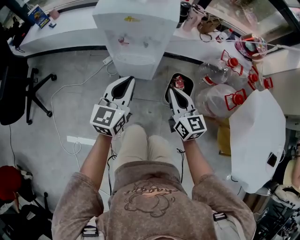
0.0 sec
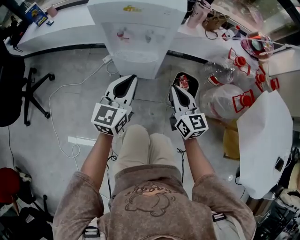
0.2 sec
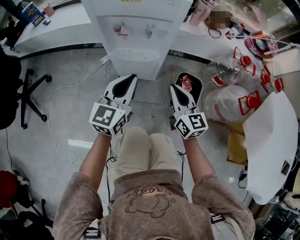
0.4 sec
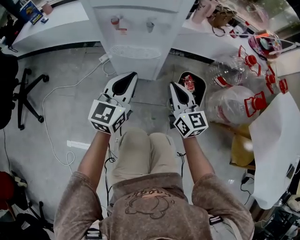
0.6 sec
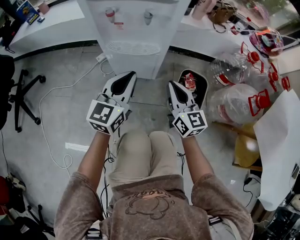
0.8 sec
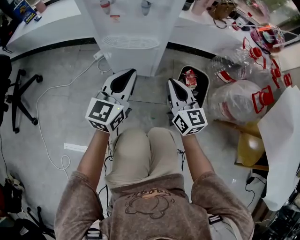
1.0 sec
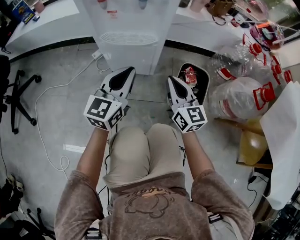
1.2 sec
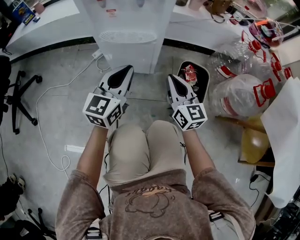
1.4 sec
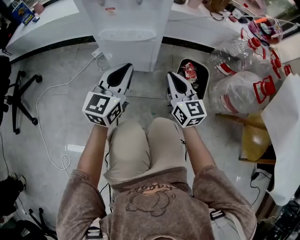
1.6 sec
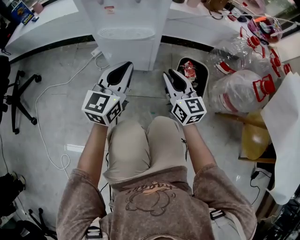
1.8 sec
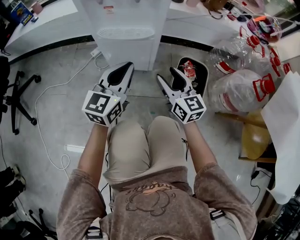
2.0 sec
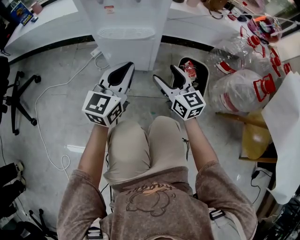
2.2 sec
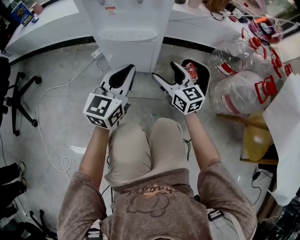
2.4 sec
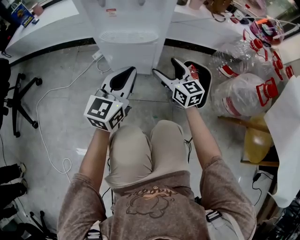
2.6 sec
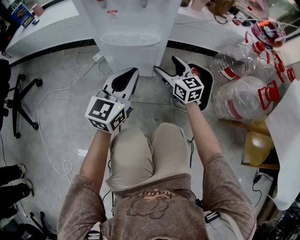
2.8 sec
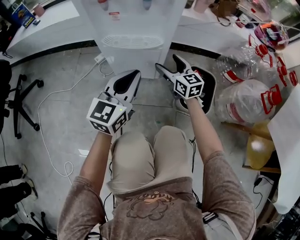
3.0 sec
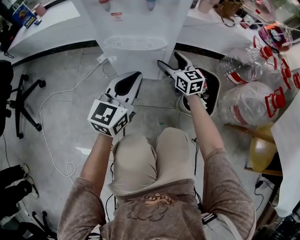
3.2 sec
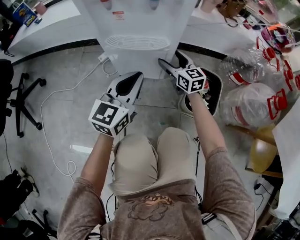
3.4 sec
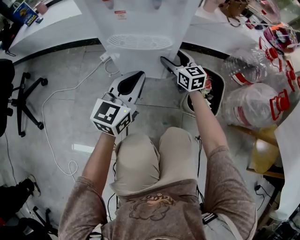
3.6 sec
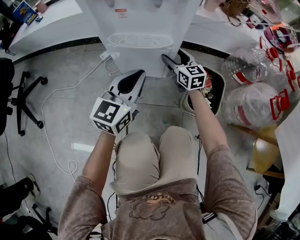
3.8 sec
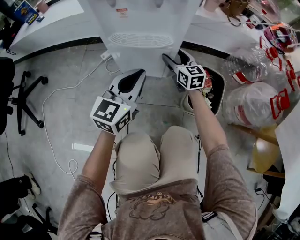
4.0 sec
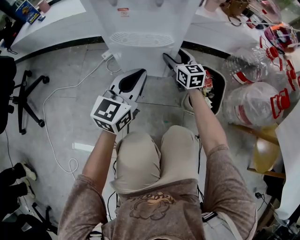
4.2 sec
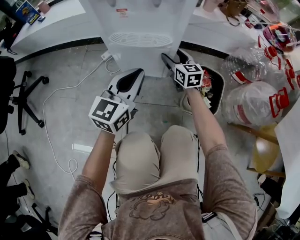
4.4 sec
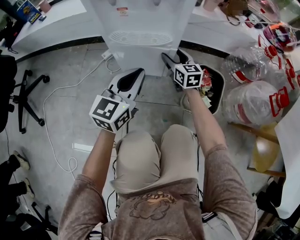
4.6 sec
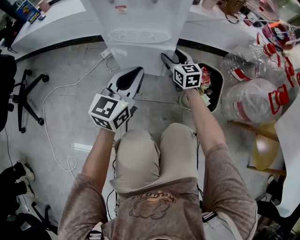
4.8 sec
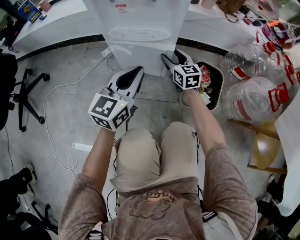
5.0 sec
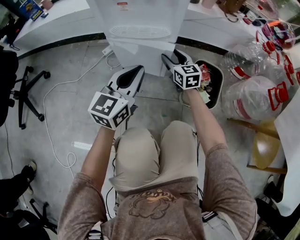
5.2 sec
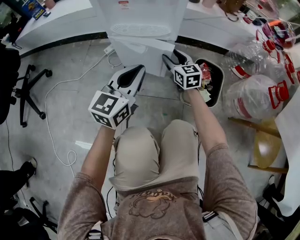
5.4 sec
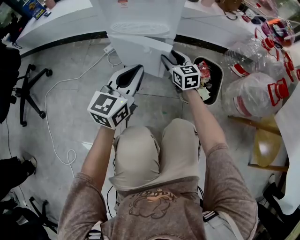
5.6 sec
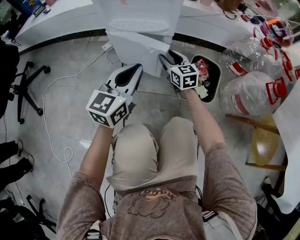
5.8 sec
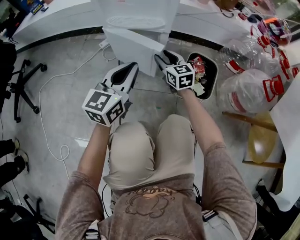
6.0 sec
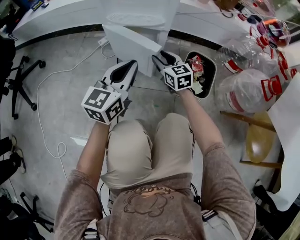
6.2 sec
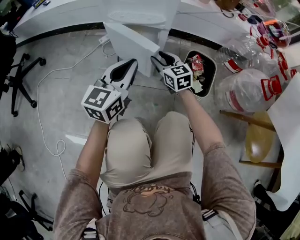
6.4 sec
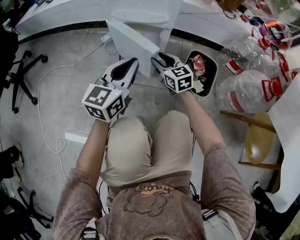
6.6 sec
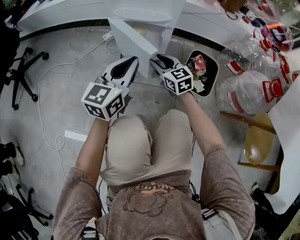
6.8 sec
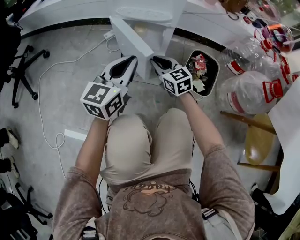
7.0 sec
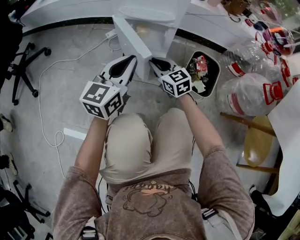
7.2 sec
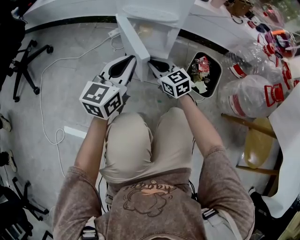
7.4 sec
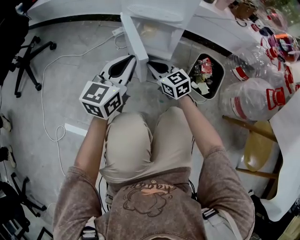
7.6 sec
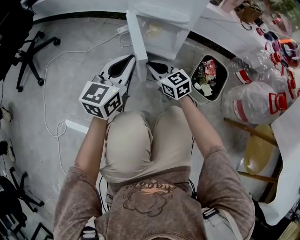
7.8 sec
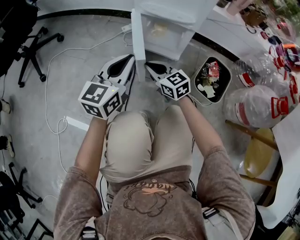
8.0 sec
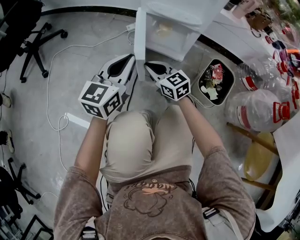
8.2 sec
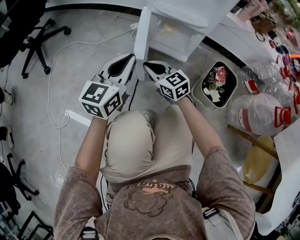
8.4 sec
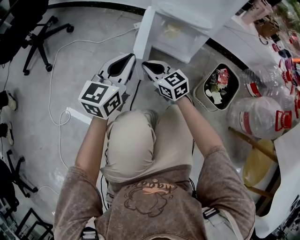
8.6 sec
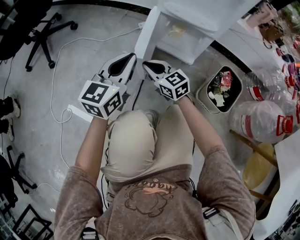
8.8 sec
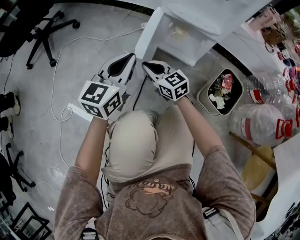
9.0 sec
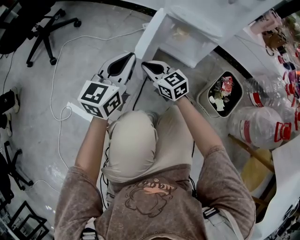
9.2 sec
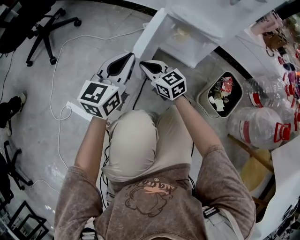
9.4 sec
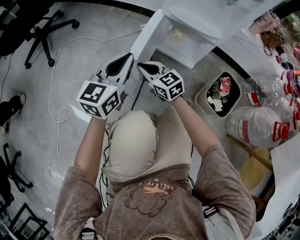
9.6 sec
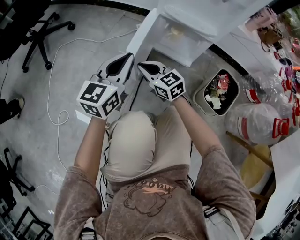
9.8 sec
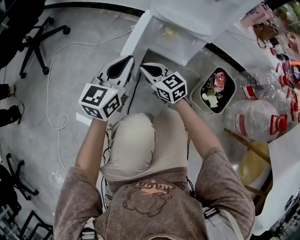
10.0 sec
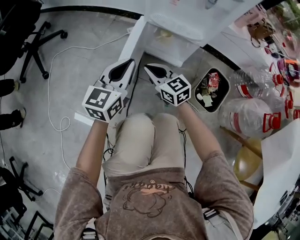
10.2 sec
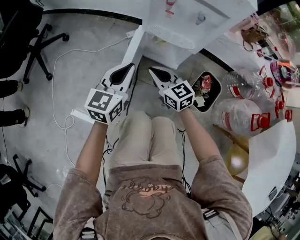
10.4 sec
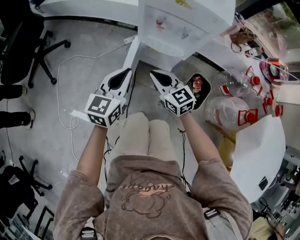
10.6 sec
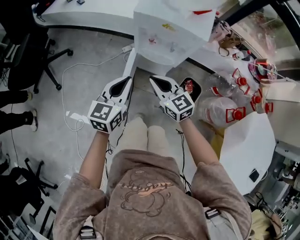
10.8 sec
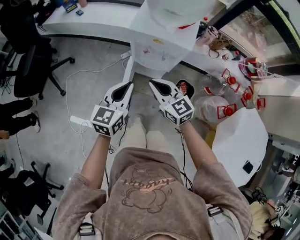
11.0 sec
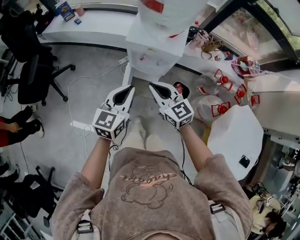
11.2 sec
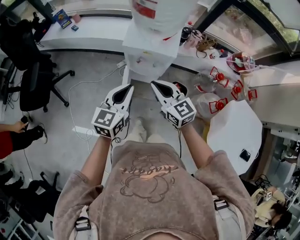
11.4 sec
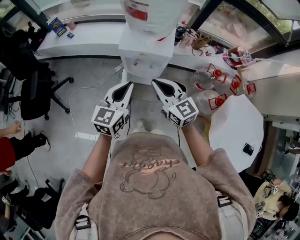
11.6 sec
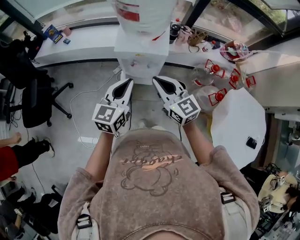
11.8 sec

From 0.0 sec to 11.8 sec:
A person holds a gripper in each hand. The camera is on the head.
From 0.0 sec to 1.4 sec: Both grippers move downward, approximately 20 cm.
From 1.4 sec to 3.0 sec: The right gripper shifts roughly 15 cm forward and downward, and opens its fingers.
From 3.0 sec to 4.4 sec: The right gripper moves some 5 cm.
From 4.4 sec to 6.0 sec: Both grippers move backward, roughly 10 cm.
From 6.0 sec to 7.4 sec: The right gripper is displaced backward and to the left by approximately 10 cm.
From 7.4 sec to 8.8 sec: Both grippers move to the left, some 15 cm.
From 8.8 sec to 10.4 sec: The left gripper is displaced upward by roughly 10 cm. Meanwhile the right gripper heads upward and to the right, covering some 15 cm.
From 10.4 sec to 11.8 sec: Both grippers travel together upward, roughly 50 cm. The right gripper changes its angle by approximately 20 degrees.

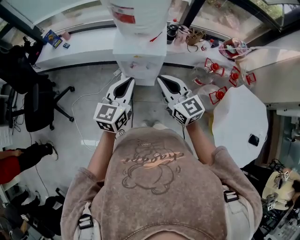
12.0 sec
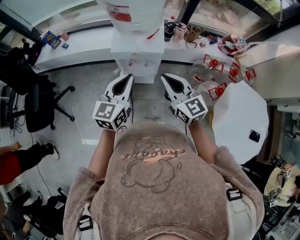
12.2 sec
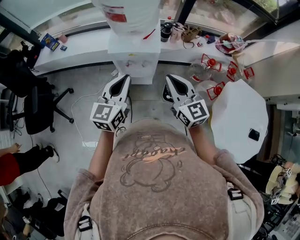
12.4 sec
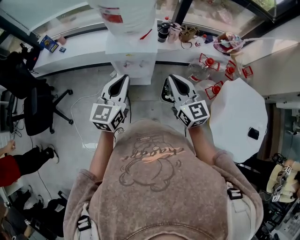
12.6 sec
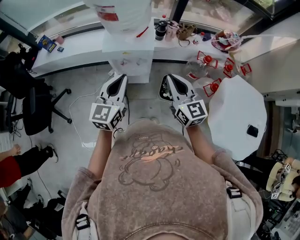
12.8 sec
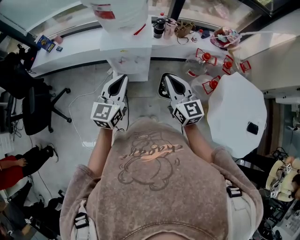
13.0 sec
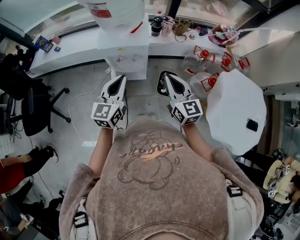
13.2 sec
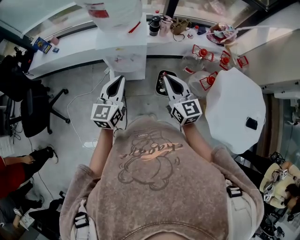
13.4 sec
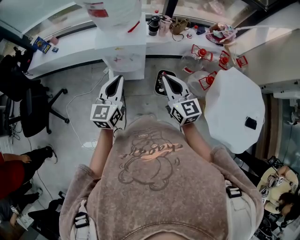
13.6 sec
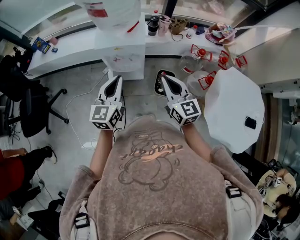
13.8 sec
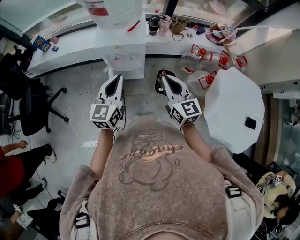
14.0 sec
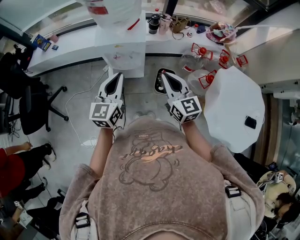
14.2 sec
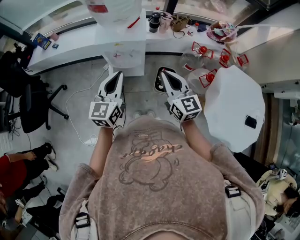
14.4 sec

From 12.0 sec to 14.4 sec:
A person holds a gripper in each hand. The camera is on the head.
From 12.0 sec to 13.2 sec: The right gripper moves to the right, about 10 cm. The left gripper shifts by some 5 cm.
From 13.2 sec to 14.4 sec: The grippers stay close to where they were, moving slightly.

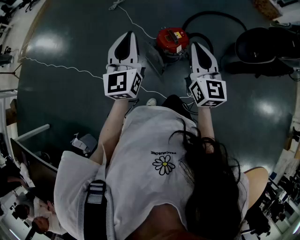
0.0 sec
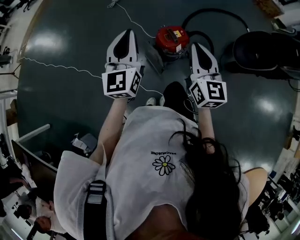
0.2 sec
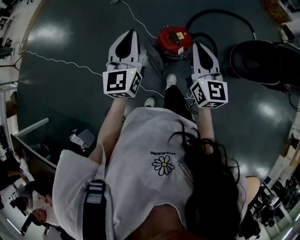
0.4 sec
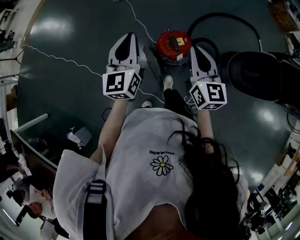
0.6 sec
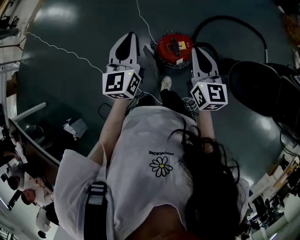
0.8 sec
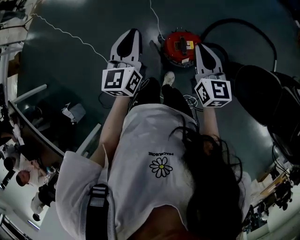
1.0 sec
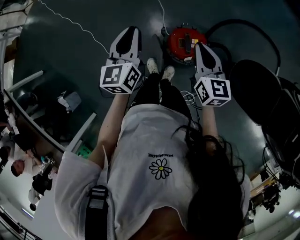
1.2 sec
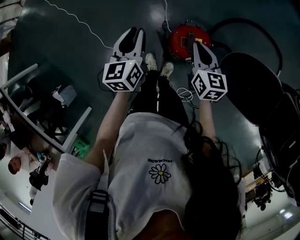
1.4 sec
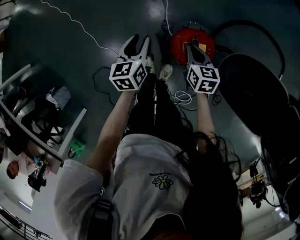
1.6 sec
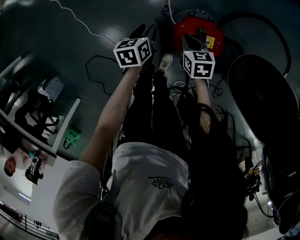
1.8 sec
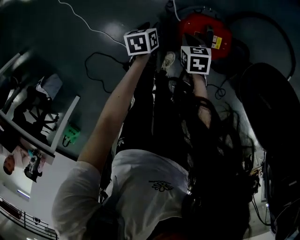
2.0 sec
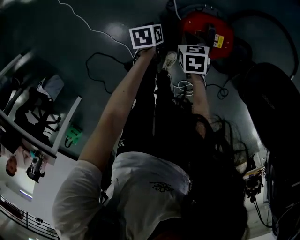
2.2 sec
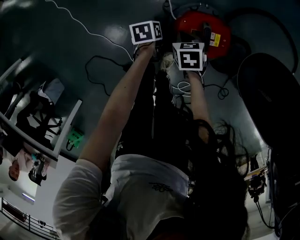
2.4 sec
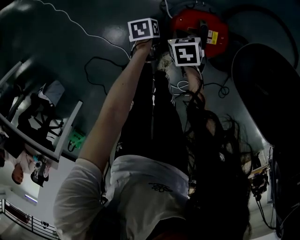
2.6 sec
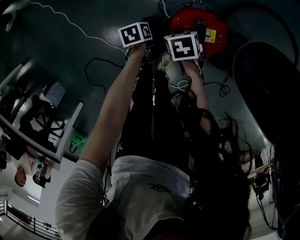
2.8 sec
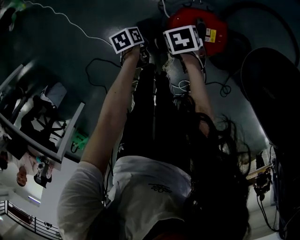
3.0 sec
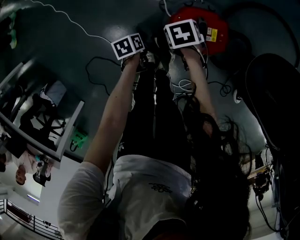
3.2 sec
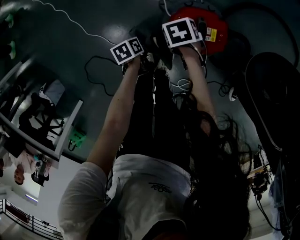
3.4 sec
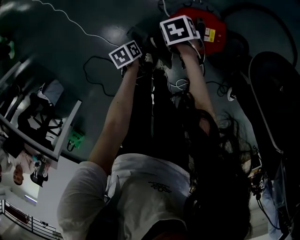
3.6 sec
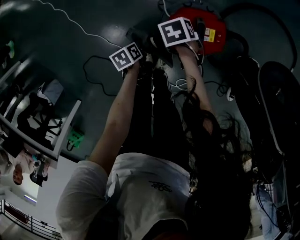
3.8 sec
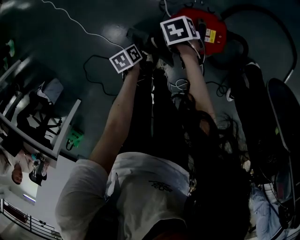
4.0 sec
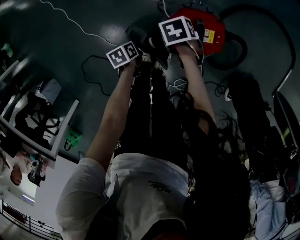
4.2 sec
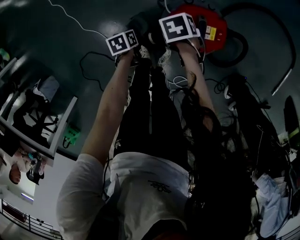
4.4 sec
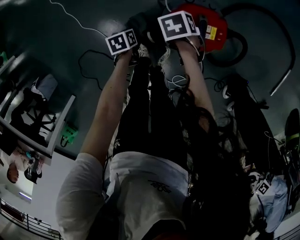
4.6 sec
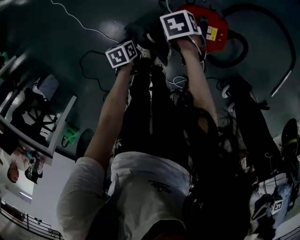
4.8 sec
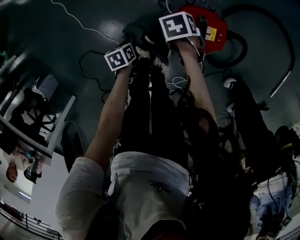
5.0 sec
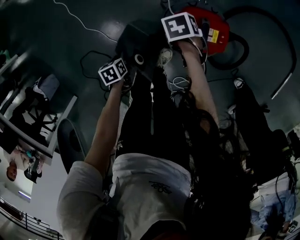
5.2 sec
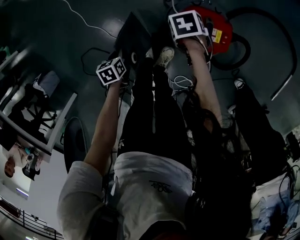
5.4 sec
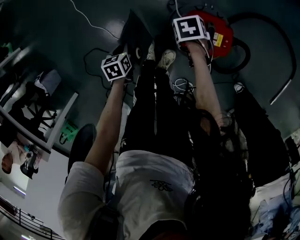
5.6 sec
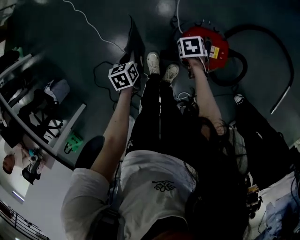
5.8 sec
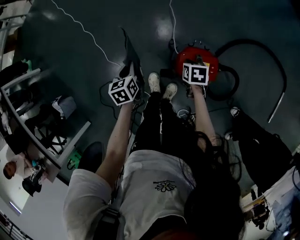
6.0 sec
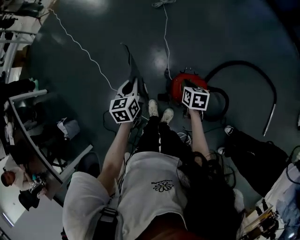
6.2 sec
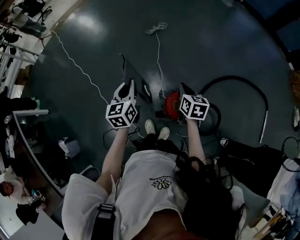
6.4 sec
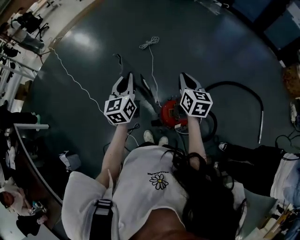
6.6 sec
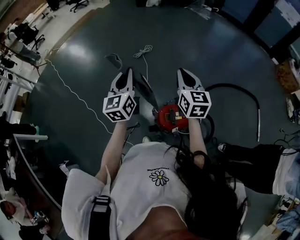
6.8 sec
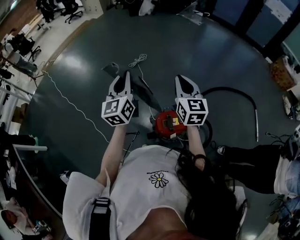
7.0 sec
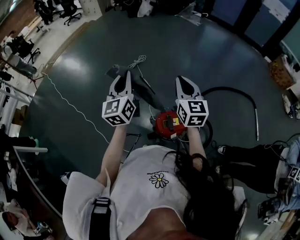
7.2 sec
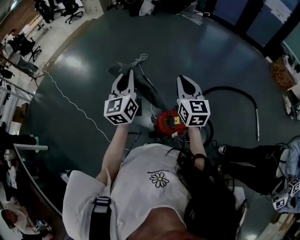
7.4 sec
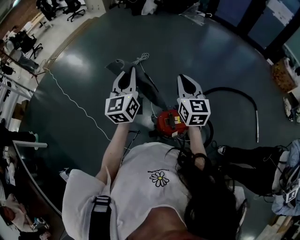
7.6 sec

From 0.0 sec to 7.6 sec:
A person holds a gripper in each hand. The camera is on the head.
From 0.0 sec to 1.6 sec: Both grippers move downward, about 40 cm. The right gripper angles its fingers downward, by about 40 degrees. The left gripper tilts its fingers roughly 40 degrees downward, and opens its fingers.
From 1.6 sec to 3.0 sec: The right gripper moves downward, roughly 20 cm, and points its fingers roughly 30 degrees further downward. The left gripper shifts about 30 cm downward, tips its fingers downward by some 30 degrees, and closes.
From 4.6 sec to 6.0 sec: The left gripper shifts about 25 cm upward, and rotates roughly 30 degrees, while the right gripper goes approximately 10 cm upward, and changes its angle by approximately 30 degrees.
From 6.0 sec to 7.6 sec: Both grippers travel together upward, some 50 cm. The right gripper tilts its fingers some 60 degrees upward; the left gripper tilts its fingers about 50 degrees upward.

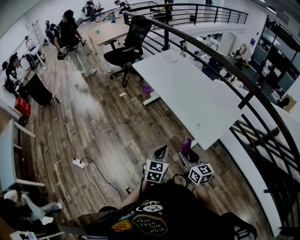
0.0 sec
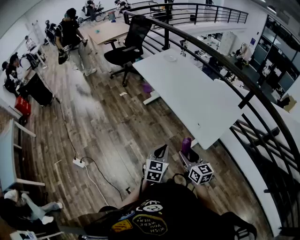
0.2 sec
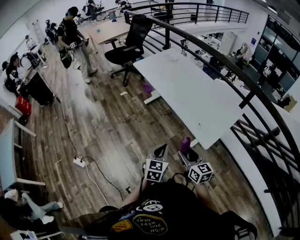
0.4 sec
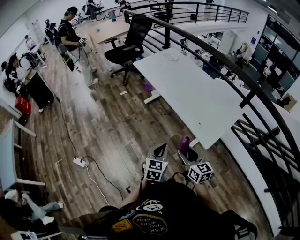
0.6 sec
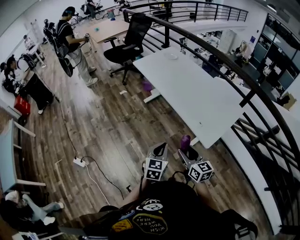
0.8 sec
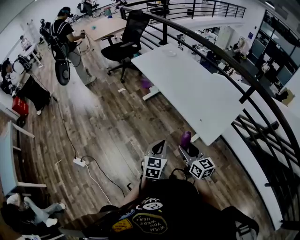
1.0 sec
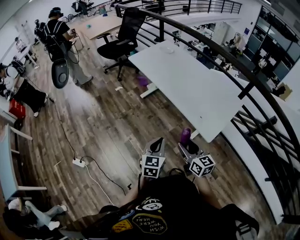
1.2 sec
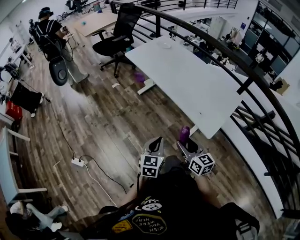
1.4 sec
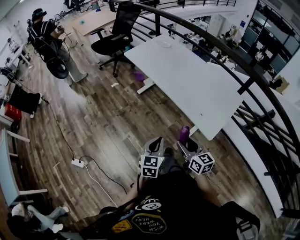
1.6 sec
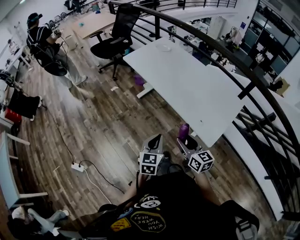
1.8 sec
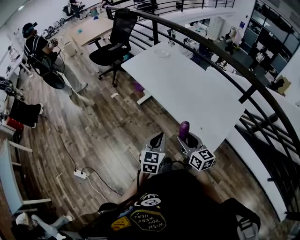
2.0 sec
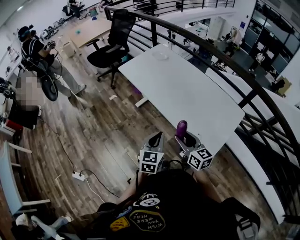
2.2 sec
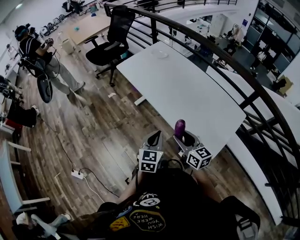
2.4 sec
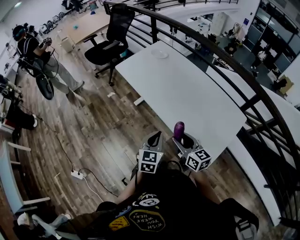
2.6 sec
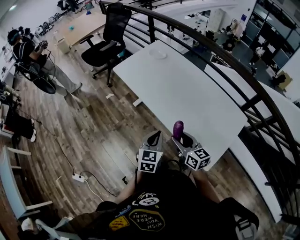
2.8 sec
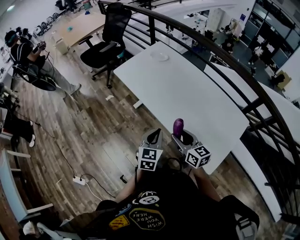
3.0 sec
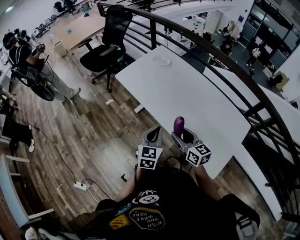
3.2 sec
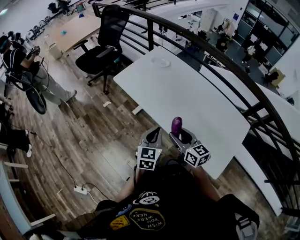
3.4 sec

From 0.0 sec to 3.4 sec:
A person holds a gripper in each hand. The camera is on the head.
From 0.0 sec to 1.6 sec: The left gripper travels to the left and forward by approximately 10 cm. The right gripper goes roughly 10 cm forward and to the left.
From 1.6 sec to 3.4 sec: The two grippers go about 40 cm forward.
